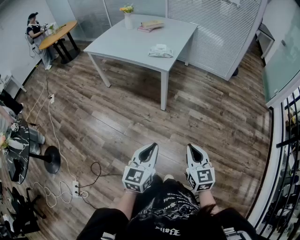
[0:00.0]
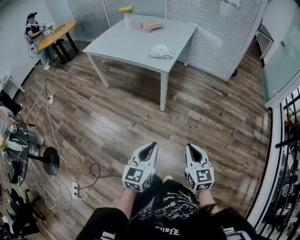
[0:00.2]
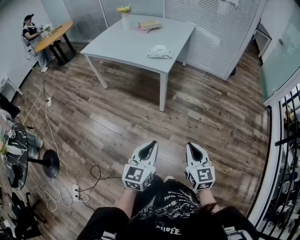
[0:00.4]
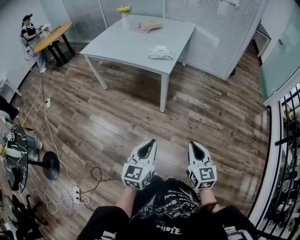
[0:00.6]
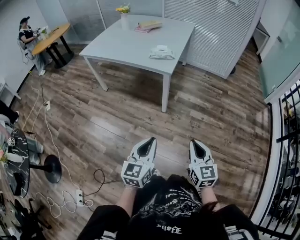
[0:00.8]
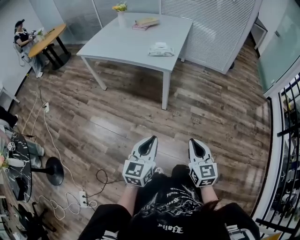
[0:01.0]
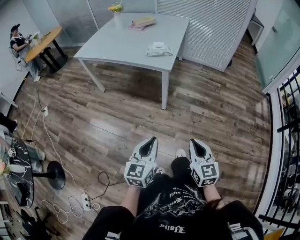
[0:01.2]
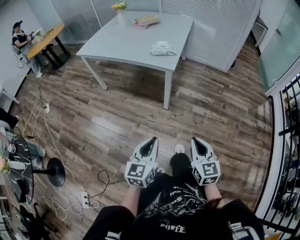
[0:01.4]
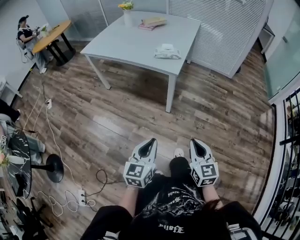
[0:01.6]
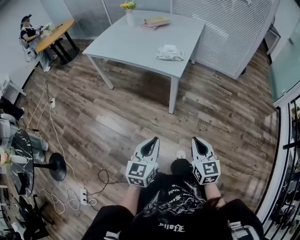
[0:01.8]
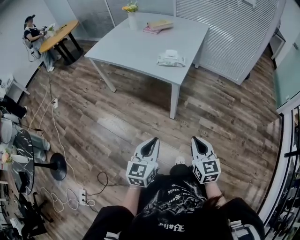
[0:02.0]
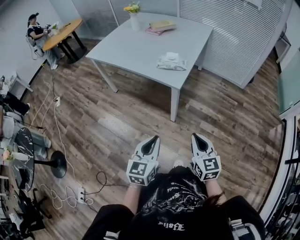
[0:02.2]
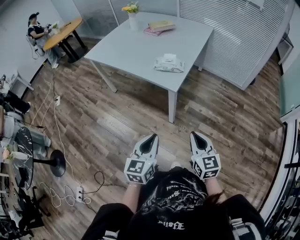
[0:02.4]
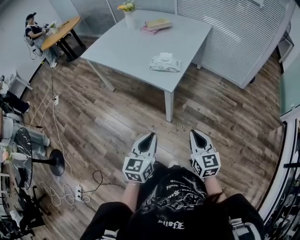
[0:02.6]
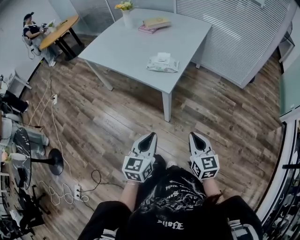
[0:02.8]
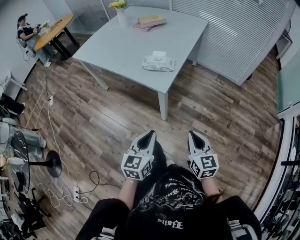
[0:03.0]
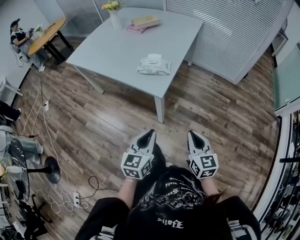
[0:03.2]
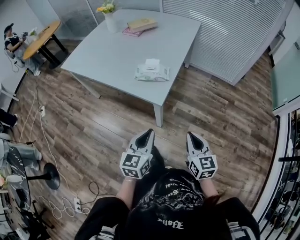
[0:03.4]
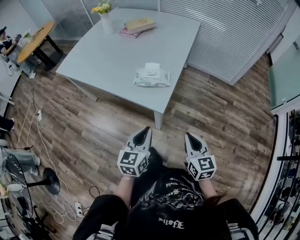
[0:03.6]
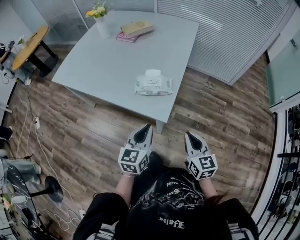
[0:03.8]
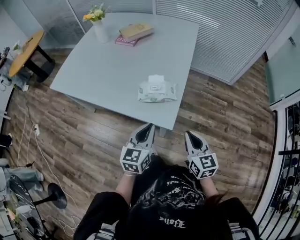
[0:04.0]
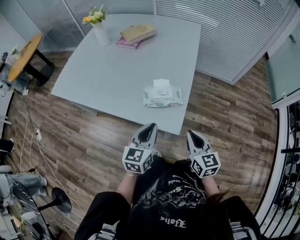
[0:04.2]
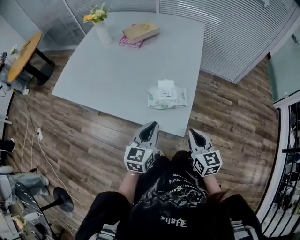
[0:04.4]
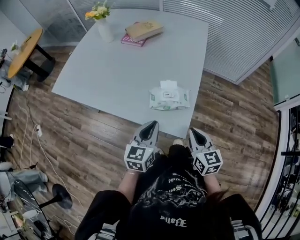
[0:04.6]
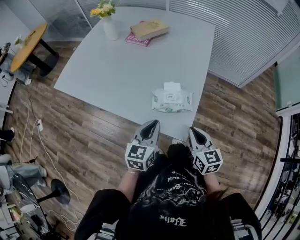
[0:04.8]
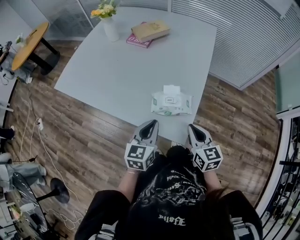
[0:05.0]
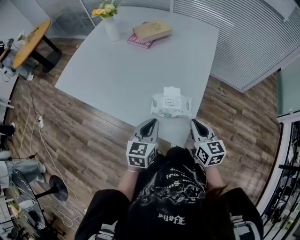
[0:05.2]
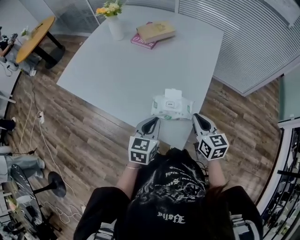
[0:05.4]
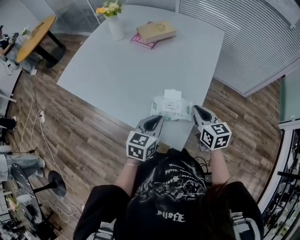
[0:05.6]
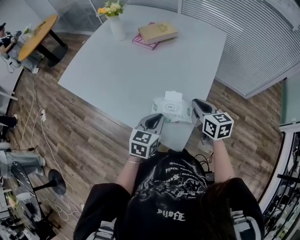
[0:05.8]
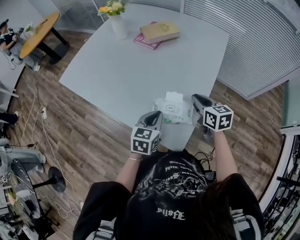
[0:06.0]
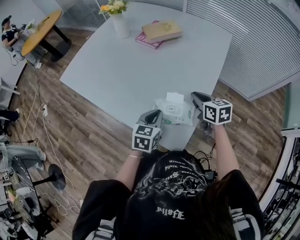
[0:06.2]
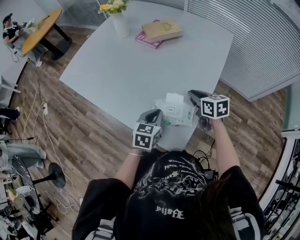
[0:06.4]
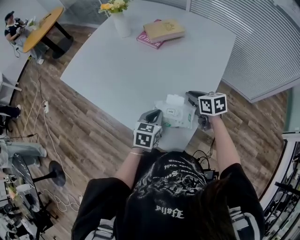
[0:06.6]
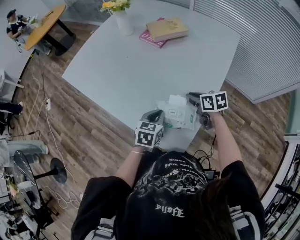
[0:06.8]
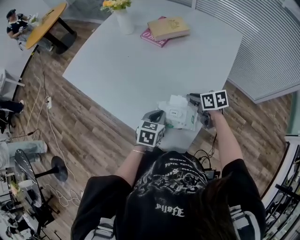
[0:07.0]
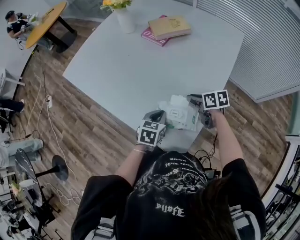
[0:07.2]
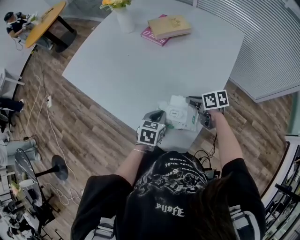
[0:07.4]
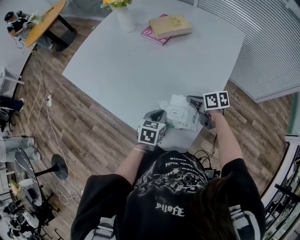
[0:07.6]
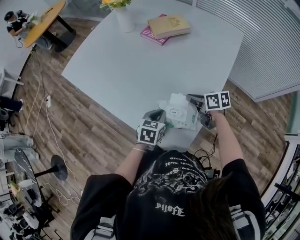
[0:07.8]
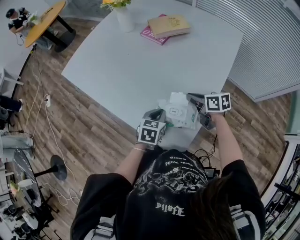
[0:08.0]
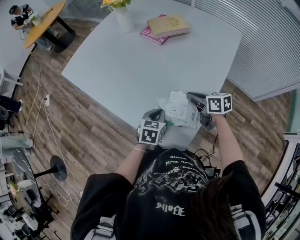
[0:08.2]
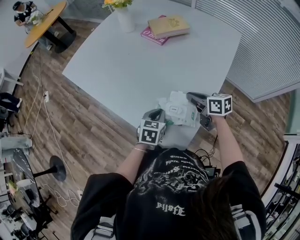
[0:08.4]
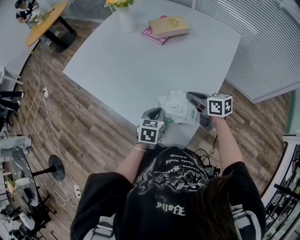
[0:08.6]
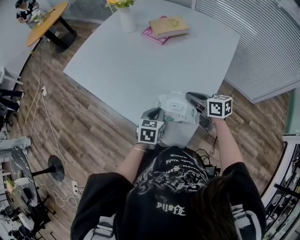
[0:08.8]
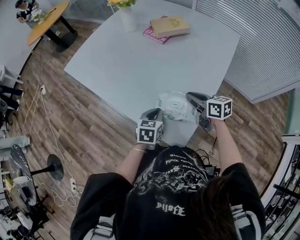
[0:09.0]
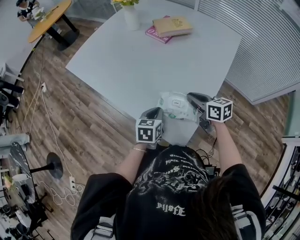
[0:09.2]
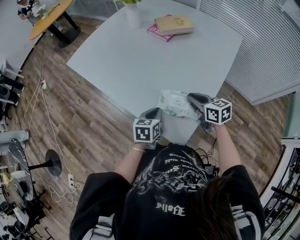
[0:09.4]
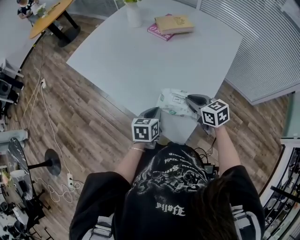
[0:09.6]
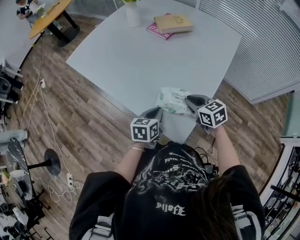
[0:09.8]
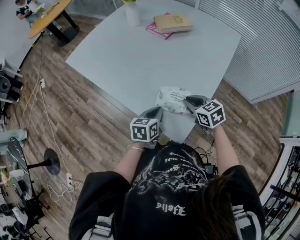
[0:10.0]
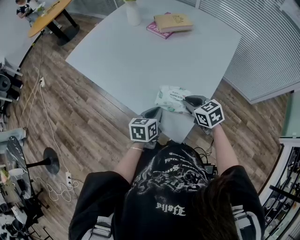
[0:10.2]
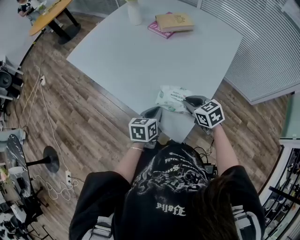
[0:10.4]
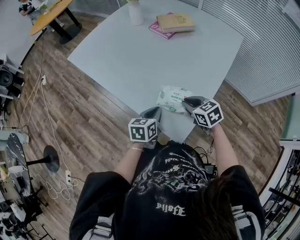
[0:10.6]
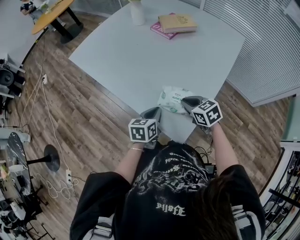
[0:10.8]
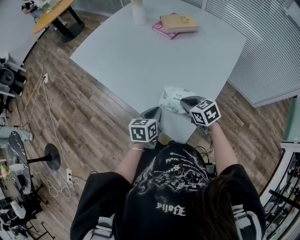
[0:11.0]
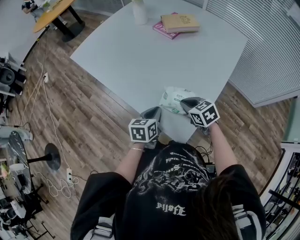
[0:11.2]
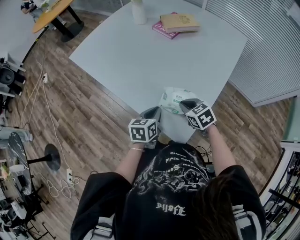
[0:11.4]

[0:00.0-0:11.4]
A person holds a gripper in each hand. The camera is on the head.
0:00.0 to 0:01.4: Both grippers travel together to the left and forward, roughly 10 cm.
0:01.4 to 0:02.8: Both grippers move forward and to the right, roughly 25 cm.
0:02.8 to 0:04.2: The left gripper shifts about 35 cm forward; the right gripper travels forward and to the left by about 30 cm.
0:04.2 to 0:05.6: The left gripper travels forward by roughly 10 cm. Meanwhile the right gripper shifts some 20 cm forward.
0:05.6 to 0:07.2: The right gripper goes approximately 15 cm forward and downward, swivels roughly 40 degrees, and opens. The left gripper is displaced downward and forward by about 10 cm.
0:07.2 to 0:08.6: The right gripper heads upward, covering some 5 cm.
0:08.6 to 0:10.0: The grippers both shift backward by some 5 cm. The right gripper swivels roughly 30 degrees.
0:10.0 to 0:11.4: The right gripper changes place by approximately 5 cm.

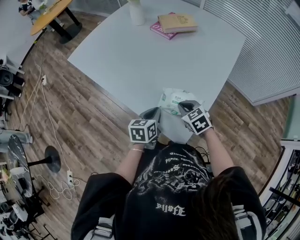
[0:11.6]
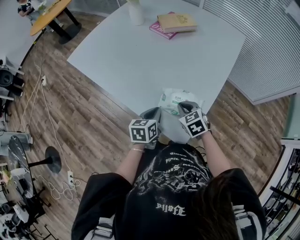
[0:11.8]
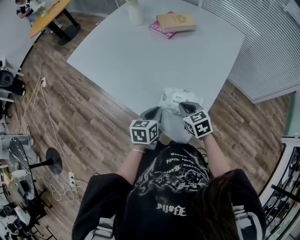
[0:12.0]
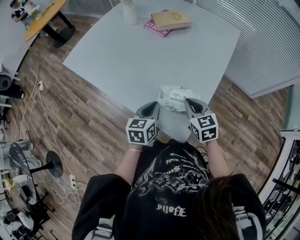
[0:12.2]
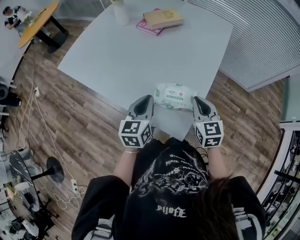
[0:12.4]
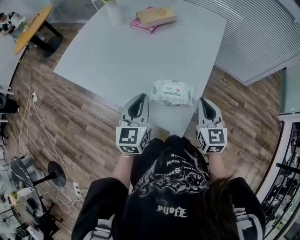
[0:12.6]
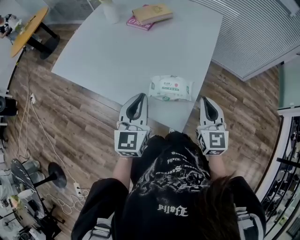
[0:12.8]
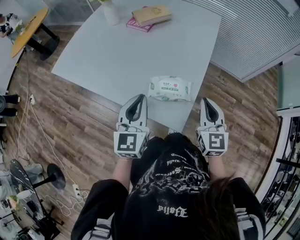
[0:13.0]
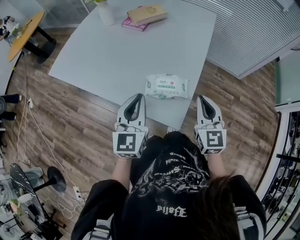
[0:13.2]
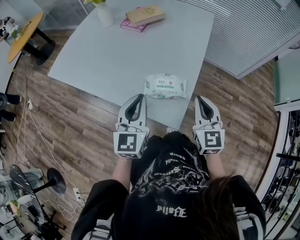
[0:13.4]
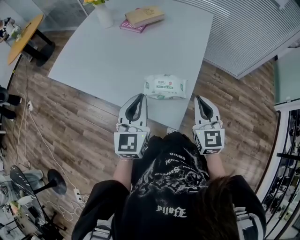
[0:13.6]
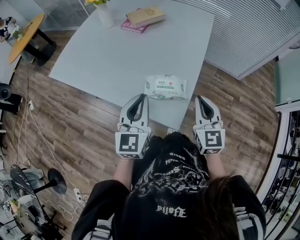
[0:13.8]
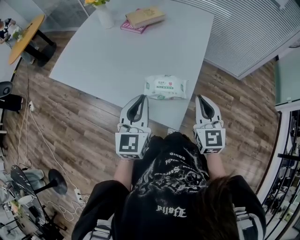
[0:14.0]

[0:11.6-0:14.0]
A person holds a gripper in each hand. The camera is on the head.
0:11.6 to 0:12.8: The right gripper heads upward, to the right and backward, covering some 20 cm, and points its fingers about 30 degrees further upward. Meanwhile the left gripper moves upward, some 15 cm, and swivels approximately 40 degrees.
0:12.8 to 0:14.0: The grippers make only small movements.

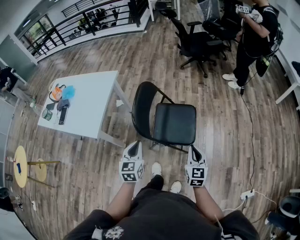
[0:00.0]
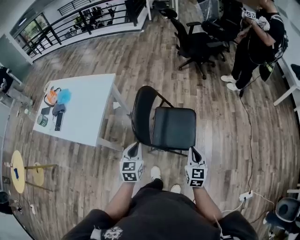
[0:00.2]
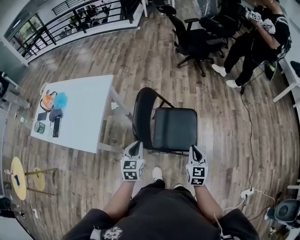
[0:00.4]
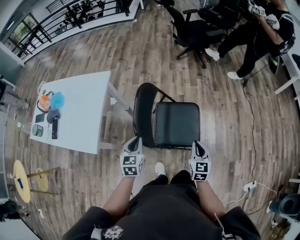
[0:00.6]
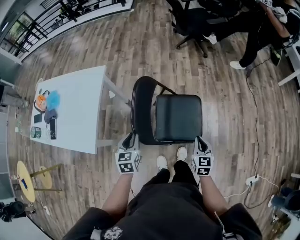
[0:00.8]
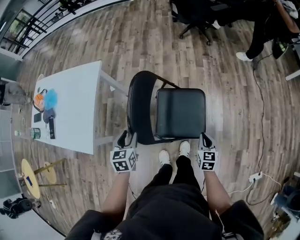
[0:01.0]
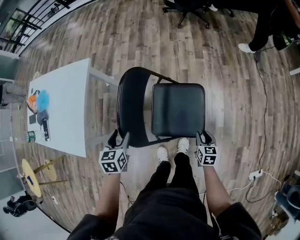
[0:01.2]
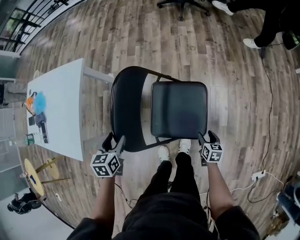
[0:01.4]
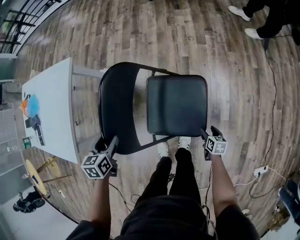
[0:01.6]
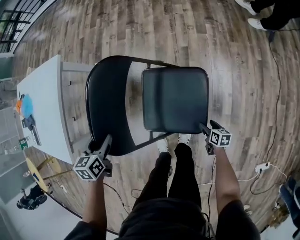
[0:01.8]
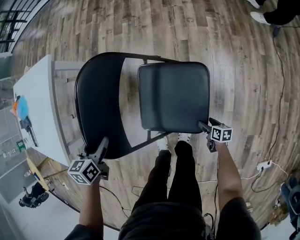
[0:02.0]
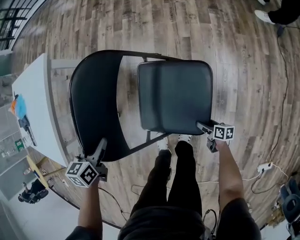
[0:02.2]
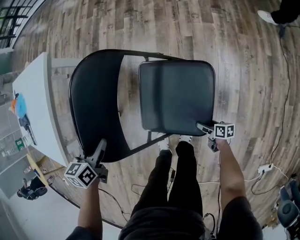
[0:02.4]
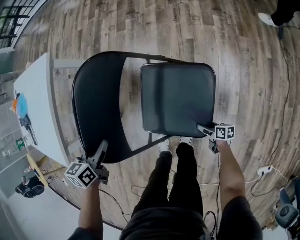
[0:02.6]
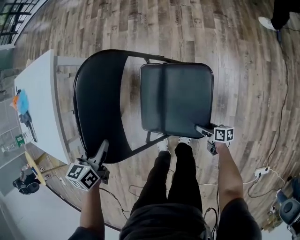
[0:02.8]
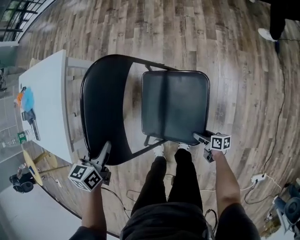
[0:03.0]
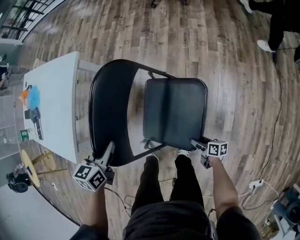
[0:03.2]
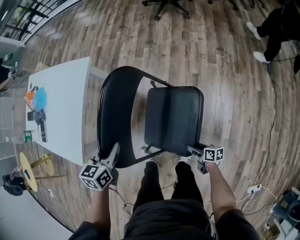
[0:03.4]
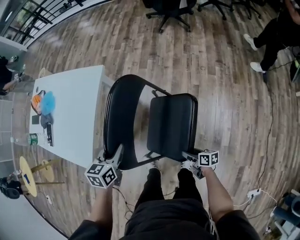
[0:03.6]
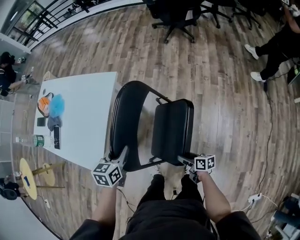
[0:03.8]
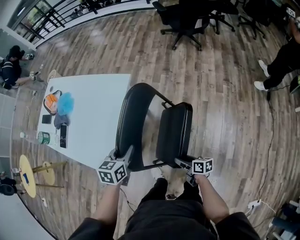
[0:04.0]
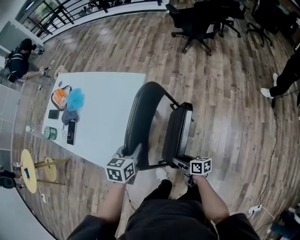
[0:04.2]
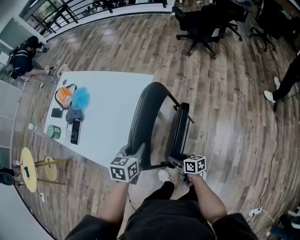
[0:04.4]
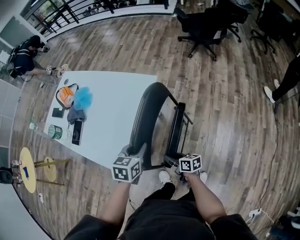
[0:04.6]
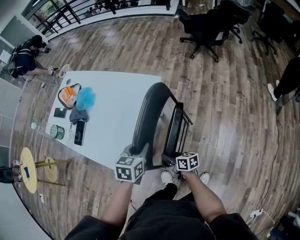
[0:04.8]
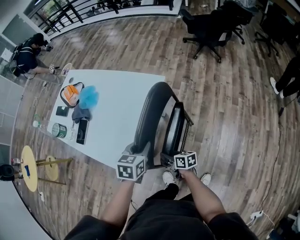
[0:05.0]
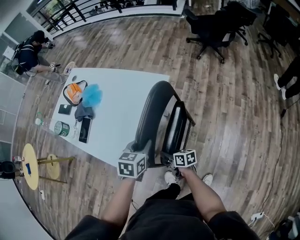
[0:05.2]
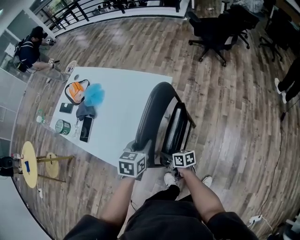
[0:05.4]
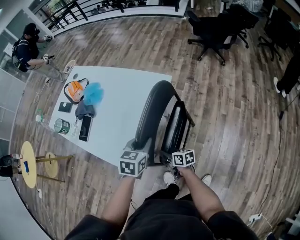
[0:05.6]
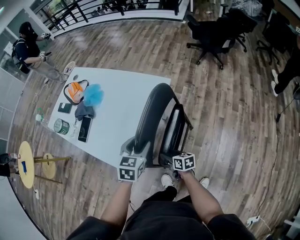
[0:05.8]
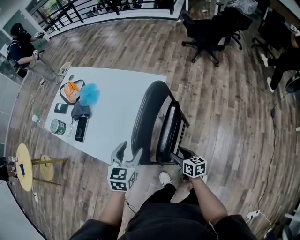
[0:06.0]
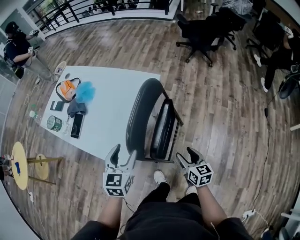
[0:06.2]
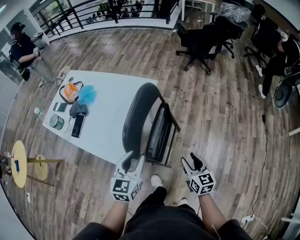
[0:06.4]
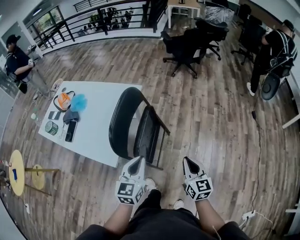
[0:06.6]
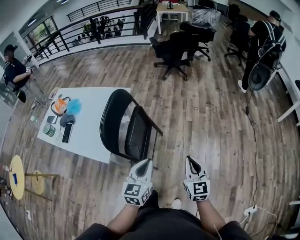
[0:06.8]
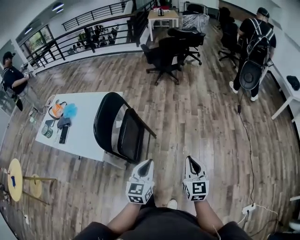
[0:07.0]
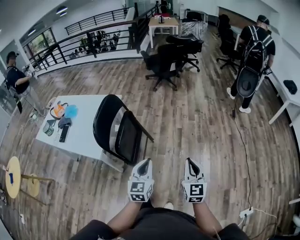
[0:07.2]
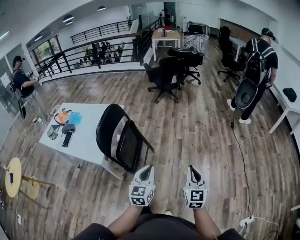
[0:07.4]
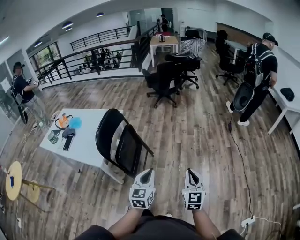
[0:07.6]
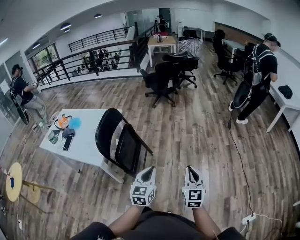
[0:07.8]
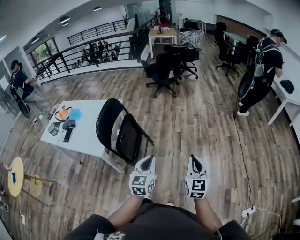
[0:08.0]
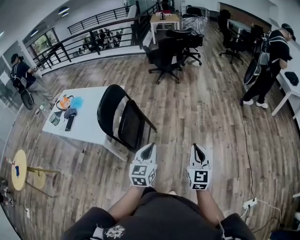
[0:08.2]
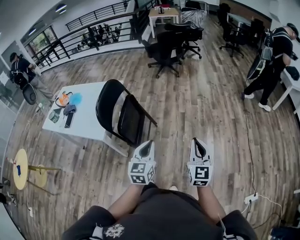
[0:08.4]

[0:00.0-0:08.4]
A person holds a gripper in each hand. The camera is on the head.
0:00.0 to 0:01.4: The right gripper travels downward and forward by about 40 cm, points its fingers about 30 degrees further downward, and opens its fingers; the left gripper shifts roughly 30 cm forward and downward, turns by approximately 30 degrees, and opens its fingers.
0:01.4 to 0:02.8: The left gripper is displaced downward by about 5 cm, and closes its fingers; the right gripper travels downward by roughly 20 cm, and turns by roughly 40 degrees.
0:02.8 to 0:04.2: The left gripper goes some 25 cm to the left, upward and forward. The right gripper is displaced to the left, upward and forward by roughly 50 cm, turns by some 20 degrees, and closes.
0:04.2 to 0:05.6: The left gripper heads to the left and forward, covering roughly 10 cm; the right gripper shifts roughly 25 cm to the left and forward.
0:05.6 to 0:07.0: The two grippers travel together, some 50 cm. The right gripper turns by some 70 degrees. The left gripper turns by roughly 30 degrees, and opens, then closes once more.
0:07.0 to 0:08.4: Both grippers move backward and to the right, roughly 10 cm.

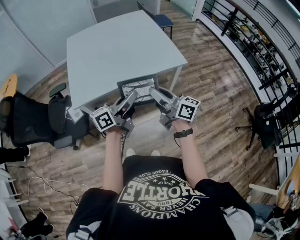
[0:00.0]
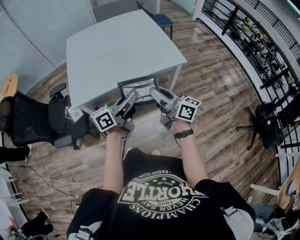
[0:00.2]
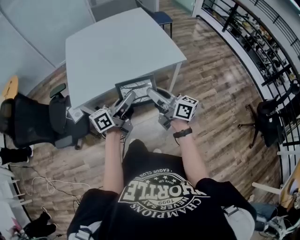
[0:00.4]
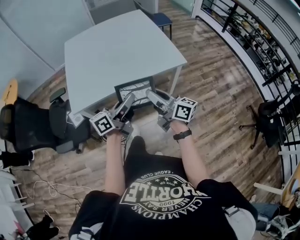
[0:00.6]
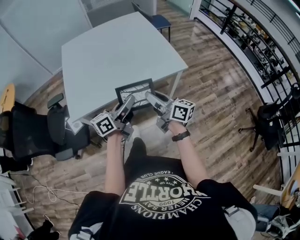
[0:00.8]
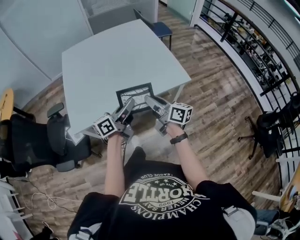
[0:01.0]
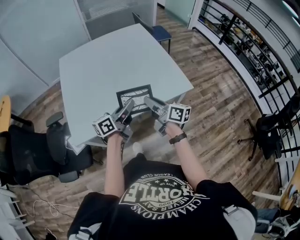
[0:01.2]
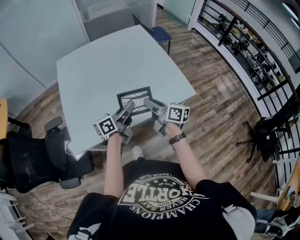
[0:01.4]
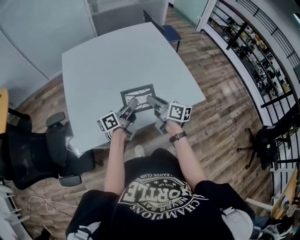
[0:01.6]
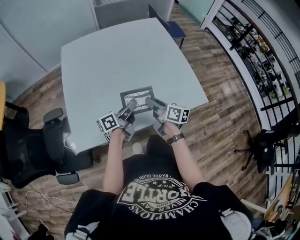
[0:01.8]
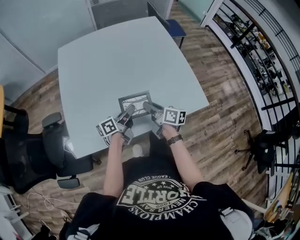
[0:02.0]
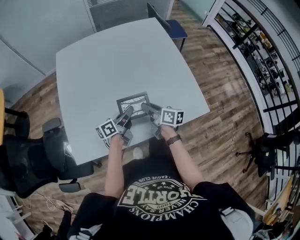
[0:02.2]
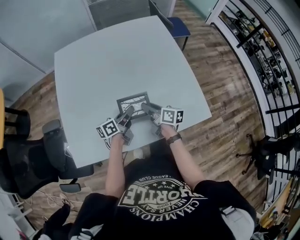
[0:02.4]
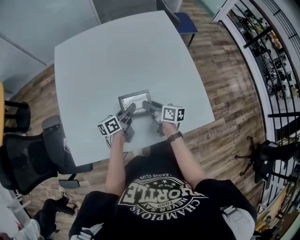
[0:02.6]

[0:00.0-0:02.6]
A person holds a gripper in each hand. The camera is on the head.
0:00.0 to 0:01.2: The grippers both shift forward by roughly 25 cm.
0:01.2 to 0:02.6: Both grippers travel together forward and downward, roughly 35 cm. The left gripper changes its angle by roughly 20 degrees; the right gripper changes its angle by roughly 20 degrees.
